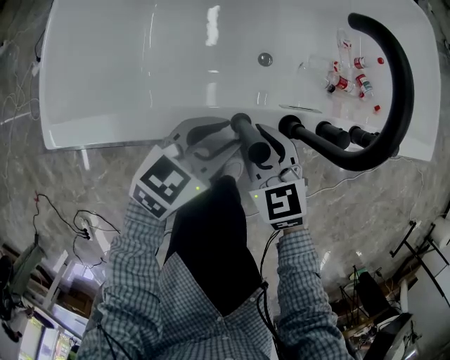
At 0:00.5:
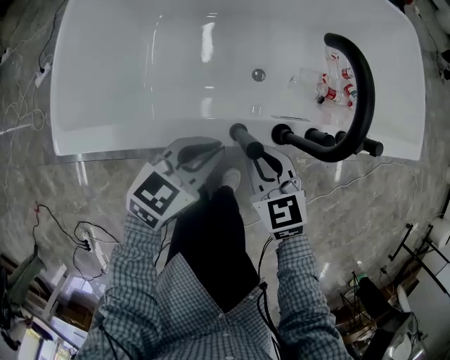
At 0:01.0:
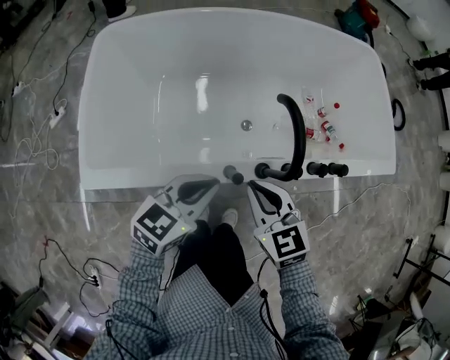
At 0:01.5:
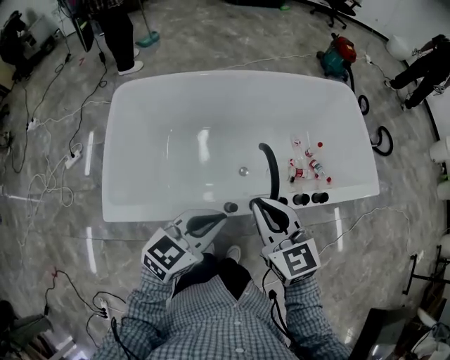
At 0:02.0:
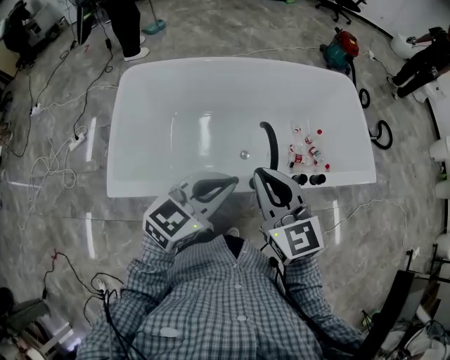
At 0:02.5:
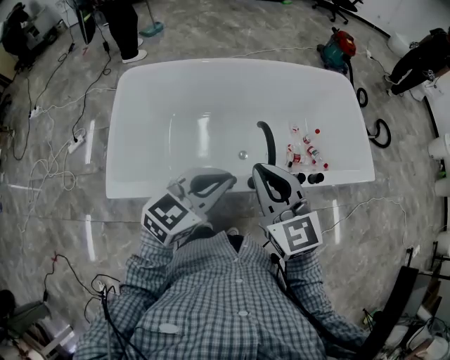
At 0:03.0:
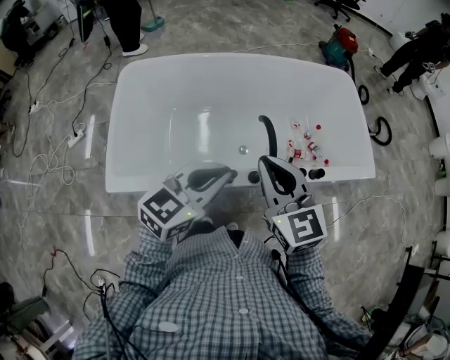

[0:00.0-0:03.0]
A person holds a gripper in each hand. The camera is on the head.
0:00.0 to 0:01.5: Both grippers move upward, some 35 cm. The left gripper closes; the right gripper changes its angle by some 20 degrees, and closes up.
0:01.5 to 0:03.0: Both grippers travel together upward, approximately 5 cm.

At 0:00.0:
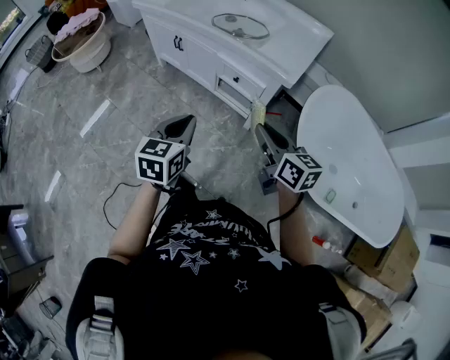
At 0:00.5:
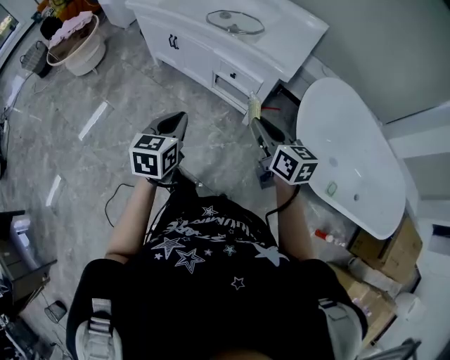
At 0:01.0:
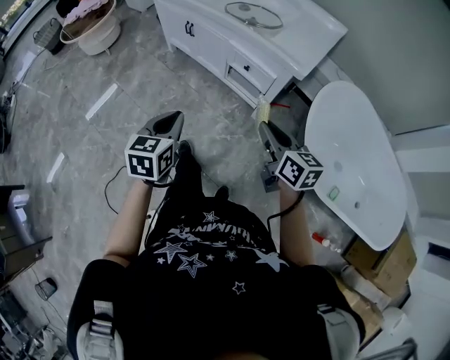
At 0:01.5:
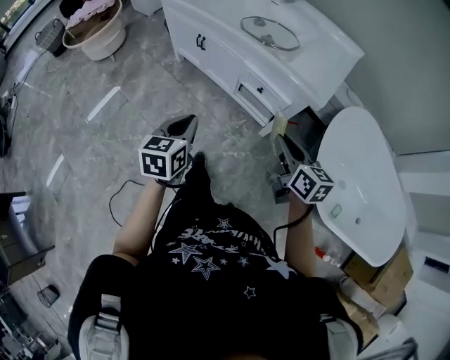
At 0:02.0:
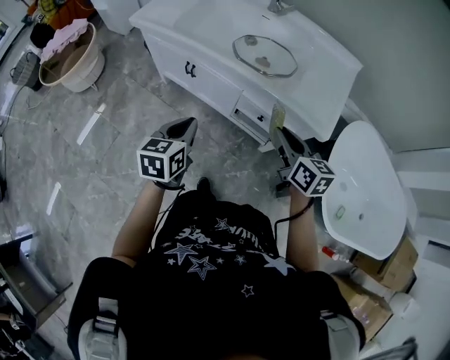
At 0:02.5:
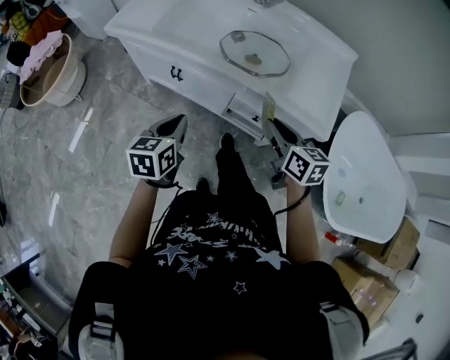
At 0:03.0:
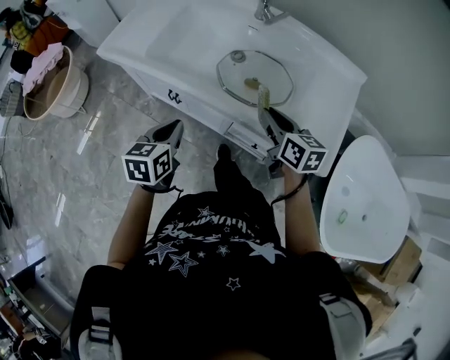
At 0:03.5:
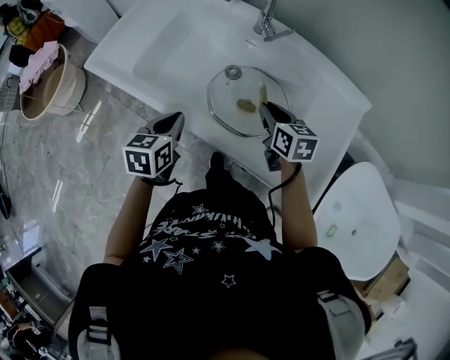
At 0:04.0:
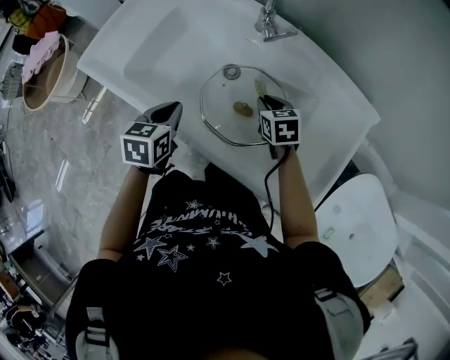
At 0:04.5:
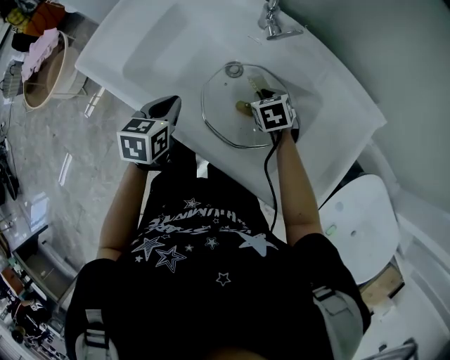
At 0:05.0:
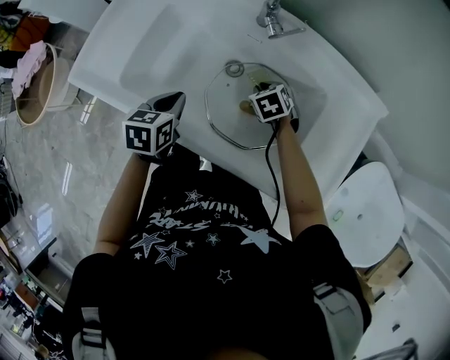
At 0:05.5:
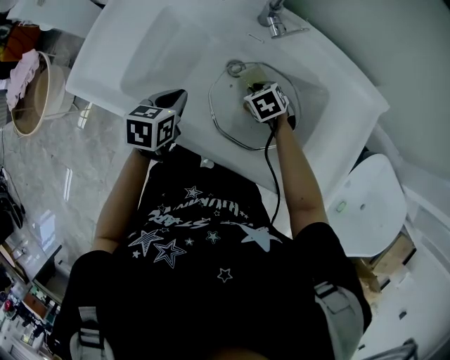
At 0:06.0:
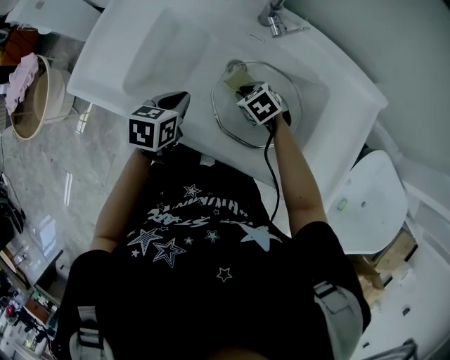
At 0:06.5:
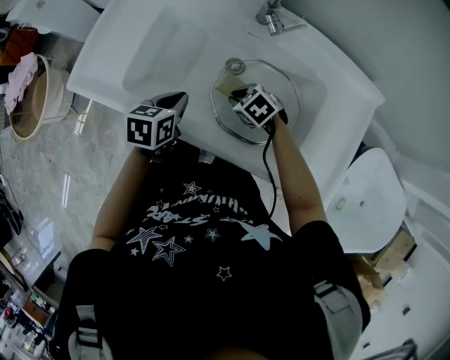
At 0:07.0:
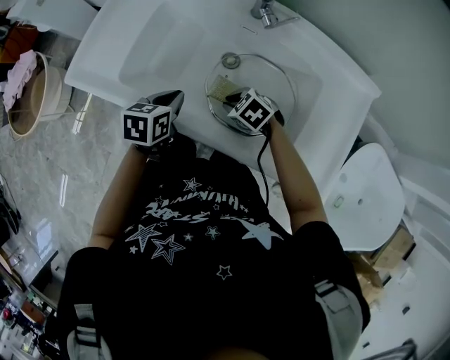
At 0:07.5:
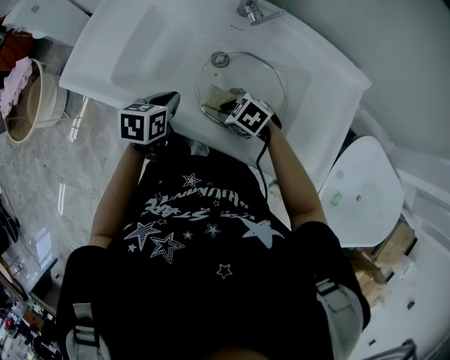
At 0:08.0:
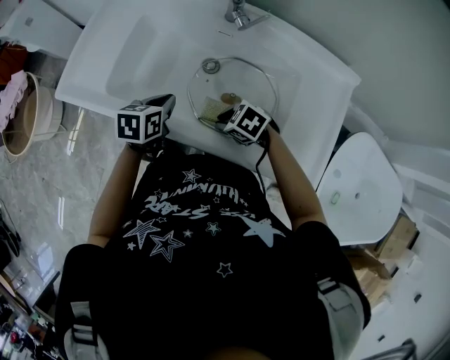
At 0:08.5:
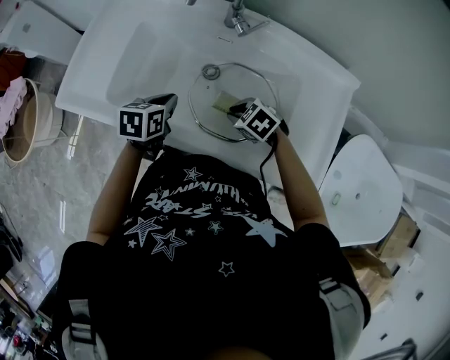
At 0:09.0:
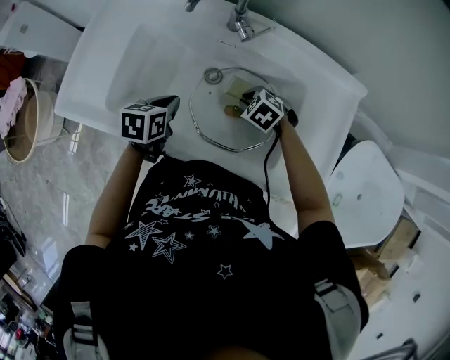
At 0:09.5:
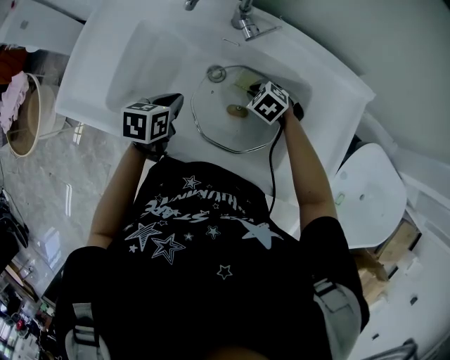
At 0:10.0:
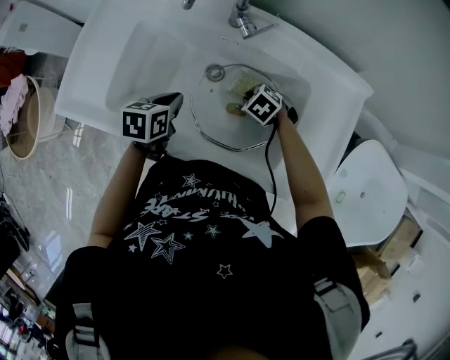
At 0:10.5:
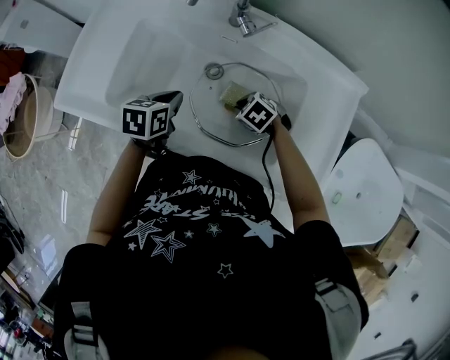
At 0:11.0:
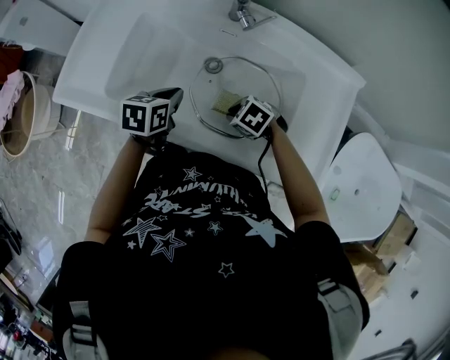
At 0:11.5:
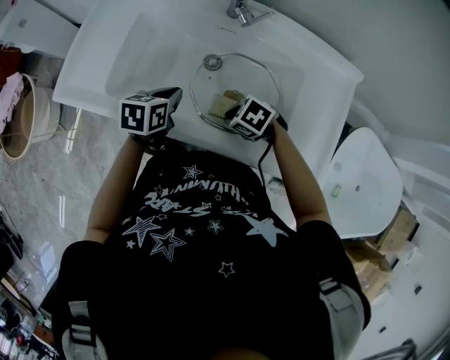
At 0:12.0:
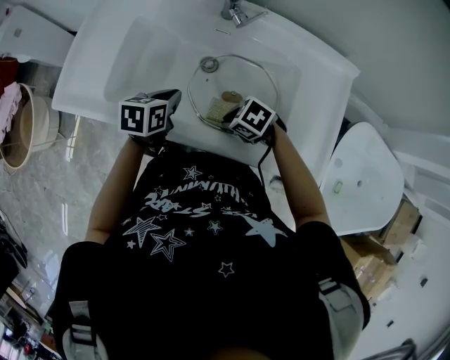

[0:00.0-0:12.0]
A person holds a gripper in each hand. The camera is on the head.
0:00.0 to 0:02.0: The right gripper heads forward, covering approximately 25 cm. Meanwhile the left gripper goes about 30 cm forward and to the left.
0:02.0 to 0:04.0: Both grippers travel together forward, approximately 40 cm. The right gripper swivels some 30 degrees.
0:04.0 to 0:06.0: The right gripper heads to the left and downward, covering some 15 cm, and turns by some 20 degrees, while the left gripper moves forward, roughly 5 cm.
0:06.0 to 0:08.0: The right gripper moves about 15 cm.
0:08.0 to 0:10.0: The right gripper moves approximately 15 cm, while the left gripper moves some 5 cm.
0:10.0 to 0:12.0: The right gripper moves some 15 cm.

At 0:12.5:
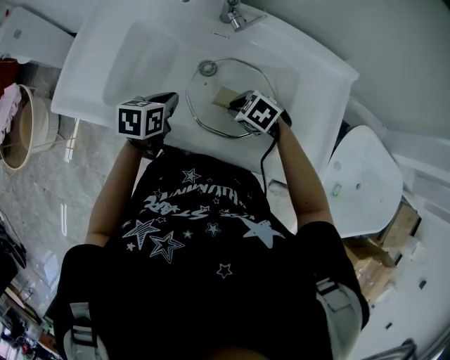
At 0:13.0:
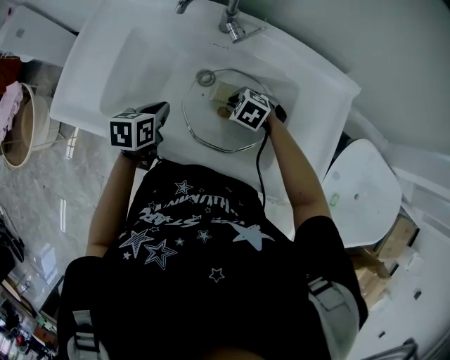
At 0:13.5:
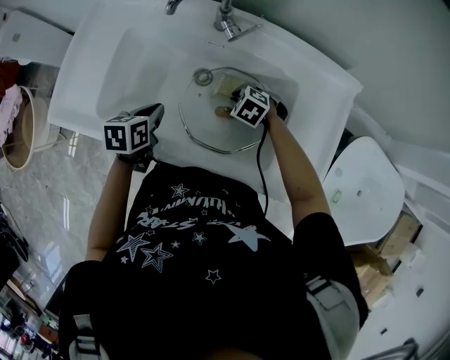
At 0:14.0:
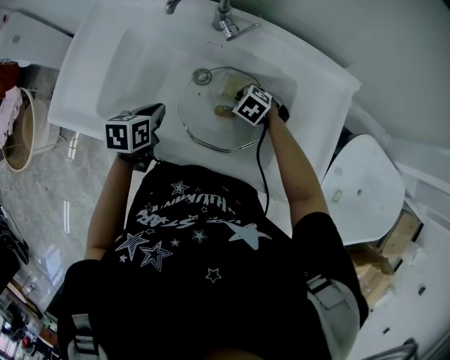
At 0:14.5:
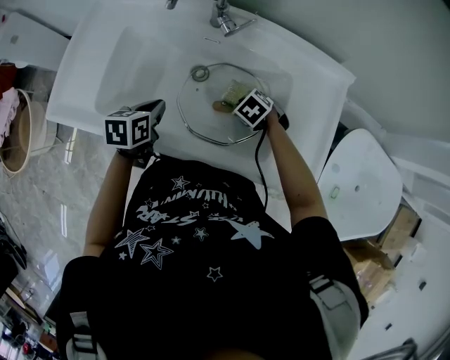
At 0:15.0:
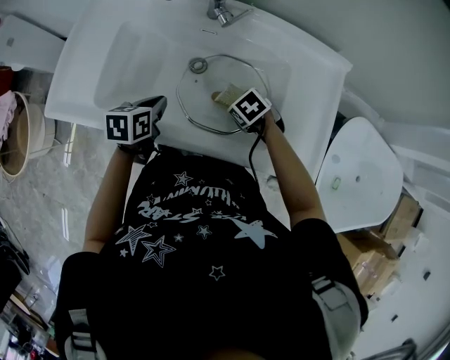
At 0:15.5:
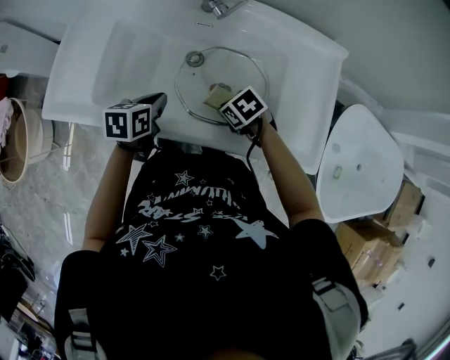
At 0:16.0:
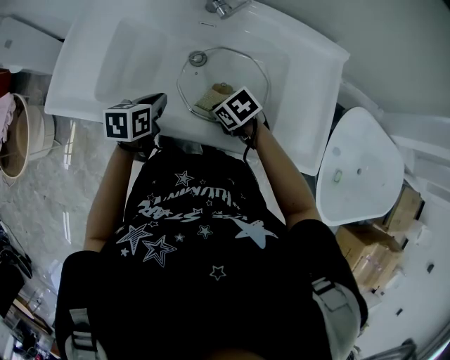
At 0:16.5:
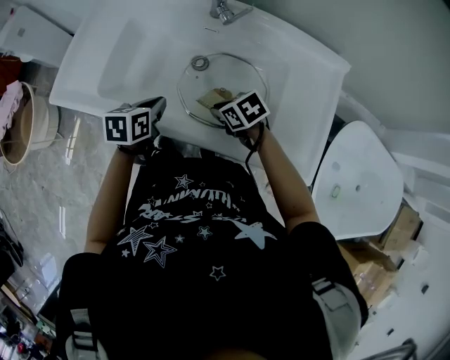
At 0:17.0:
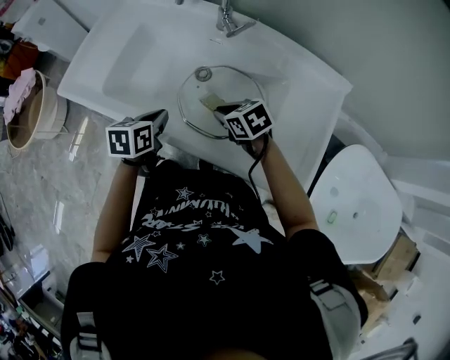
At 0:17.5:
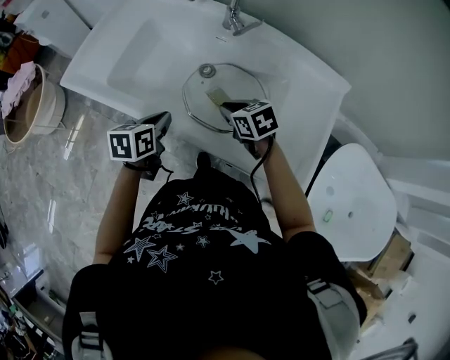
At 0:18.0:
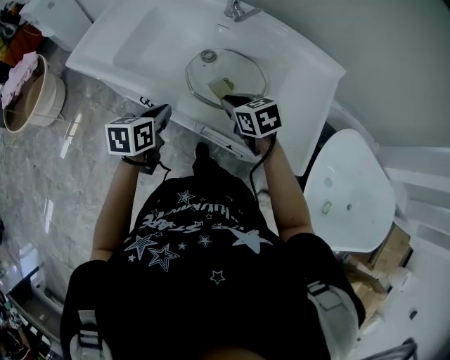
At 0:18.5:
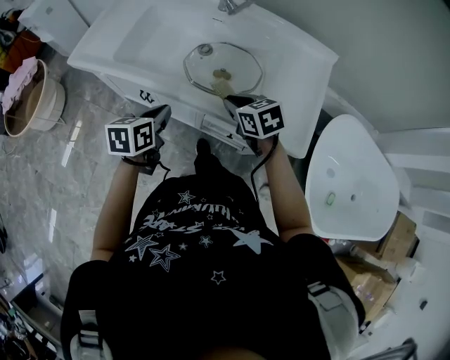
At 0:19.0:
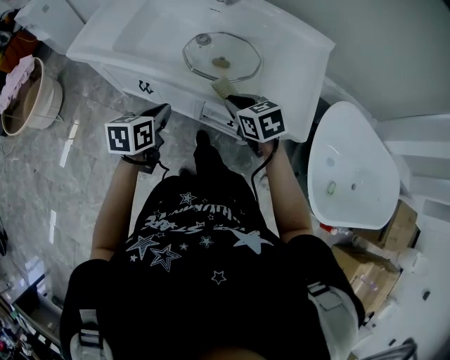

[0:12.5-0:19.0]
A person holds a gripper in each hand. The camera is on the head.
0:12.5 to 0:14.5: The right gripper moves some 10 cm.
0:14.5 to 0:17.0: The right gripper shifts approximately 10 cm upward, and swivels roughly 30 degrees, while the left gripper shifts by about 10 cm.
0:17.0 to 0:19.0: Both grippers travel together backward, about 20 cm.

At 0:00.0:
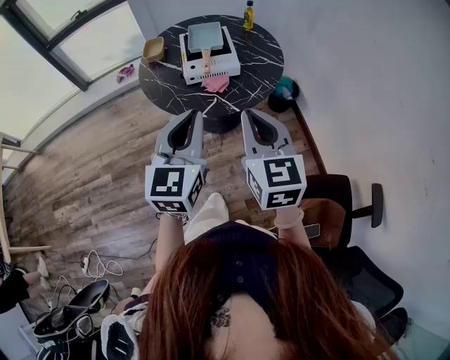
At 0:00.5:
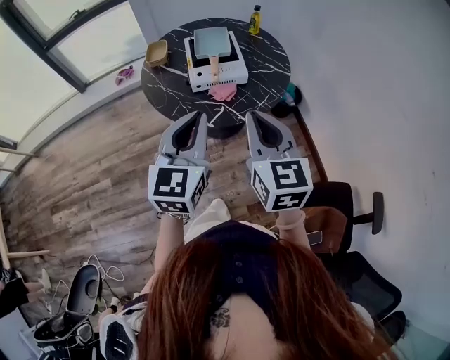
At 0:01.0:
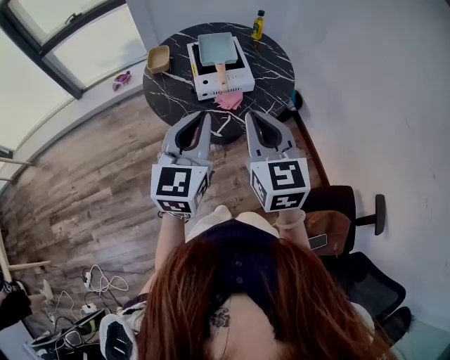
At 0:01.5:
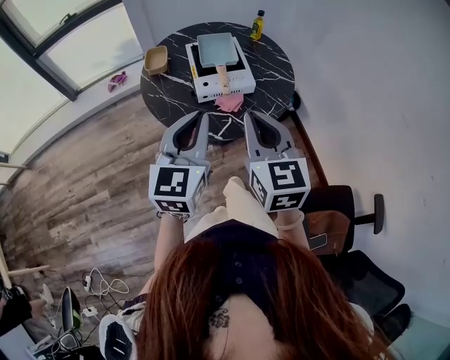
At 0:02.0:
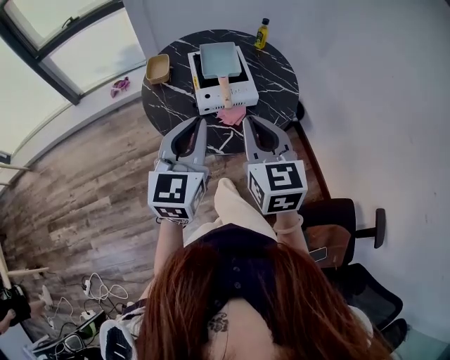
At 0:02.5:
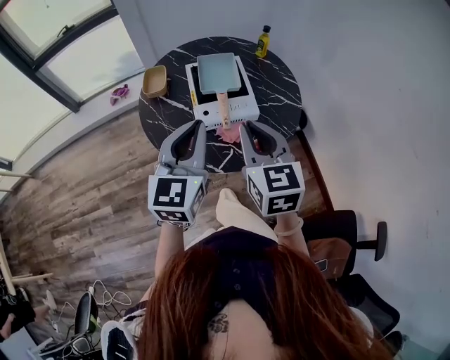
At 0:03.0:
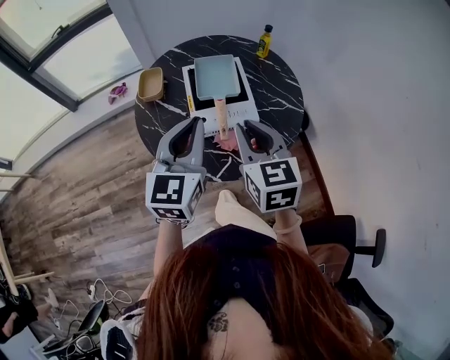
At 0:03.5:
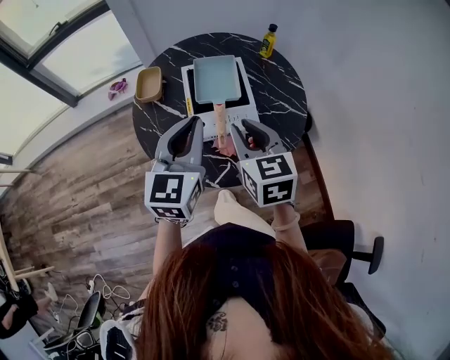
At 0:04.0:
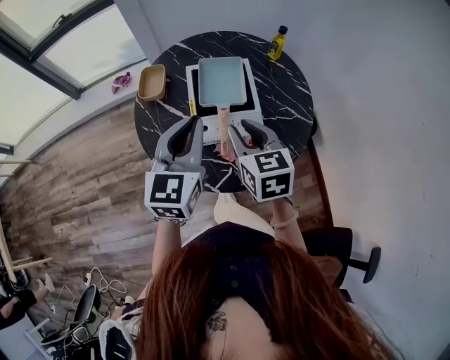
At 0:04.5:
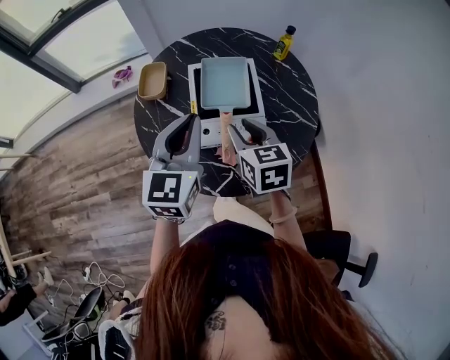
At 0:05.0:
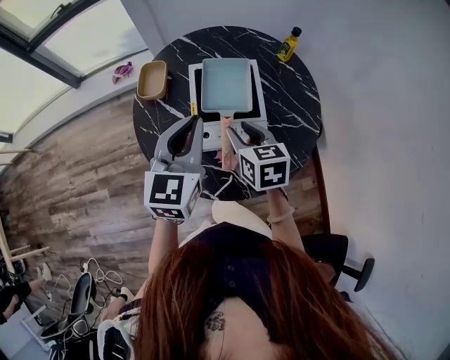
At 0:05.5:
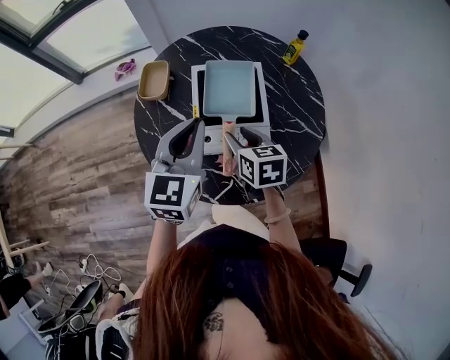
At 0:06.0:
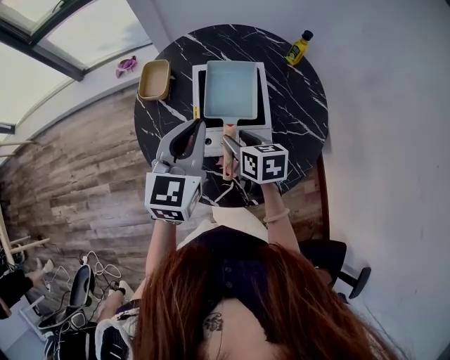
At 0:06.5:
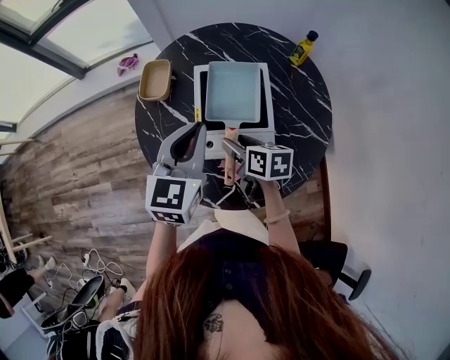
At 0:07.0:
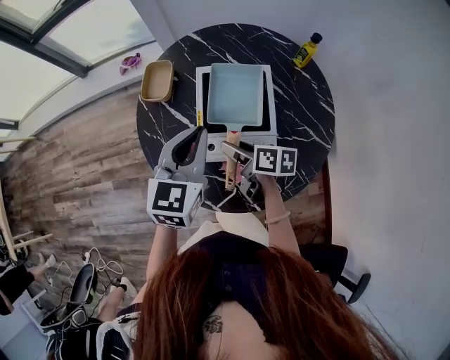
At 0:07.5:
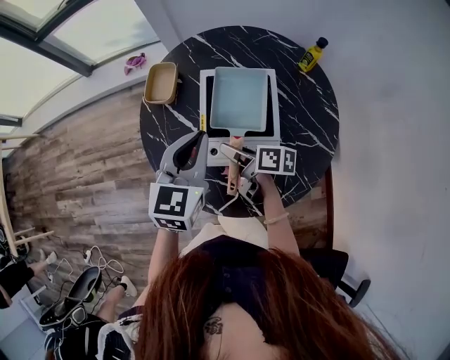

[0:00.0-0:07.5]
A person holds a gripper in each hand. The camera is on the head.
0:00.0 to 0:02.0: Both grippers move forward and to the left, some 15 cm.
0:02.0 to 0:04.0: The right gripper goes approximately 25 cm forward and downward, and opens its fingers. Meanwhile the left gripper travels forward by about 20 cm.
0:04.0 to 0:05.5: The right gripper goes roughly 15 cm downward and forward; the left gripper is displaced forward by about 5 cm.
0:05.5 to 0:07.5: The left gripper moves some 5 cm, while the right gripper shifts about 5 cm downward, and rotates approximately 50 degrees.
